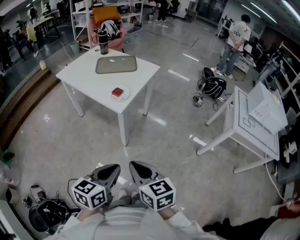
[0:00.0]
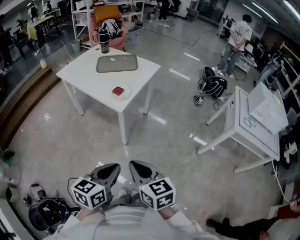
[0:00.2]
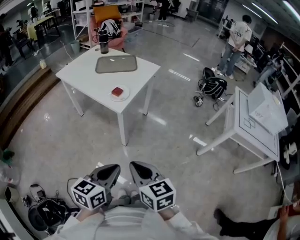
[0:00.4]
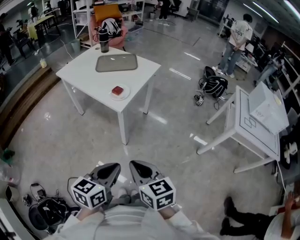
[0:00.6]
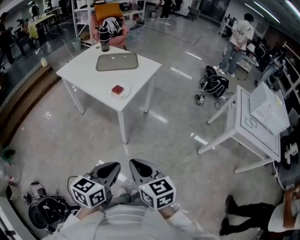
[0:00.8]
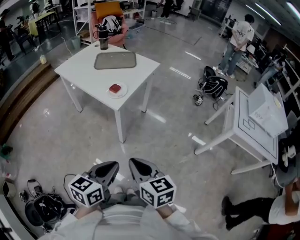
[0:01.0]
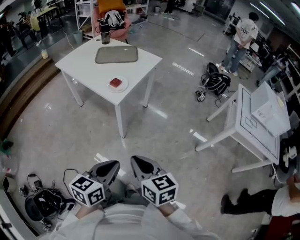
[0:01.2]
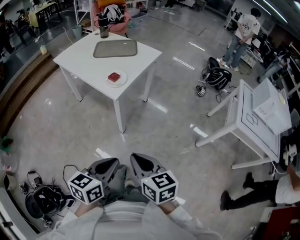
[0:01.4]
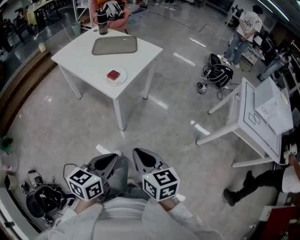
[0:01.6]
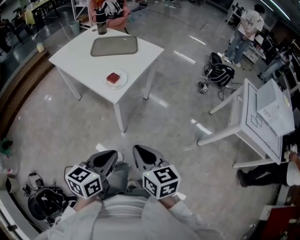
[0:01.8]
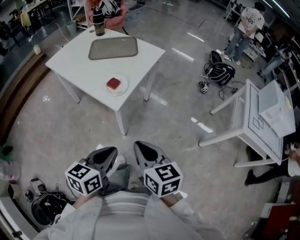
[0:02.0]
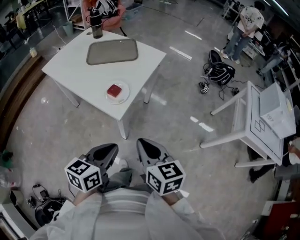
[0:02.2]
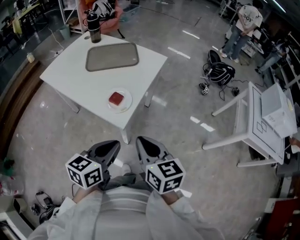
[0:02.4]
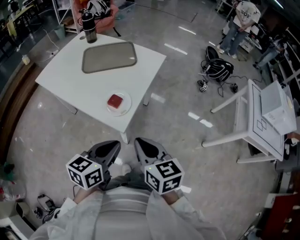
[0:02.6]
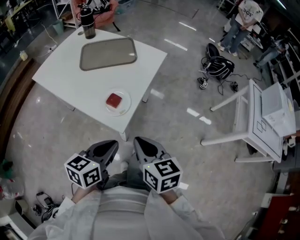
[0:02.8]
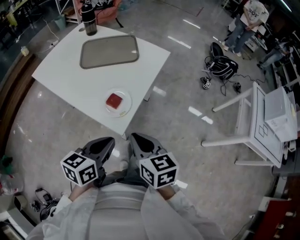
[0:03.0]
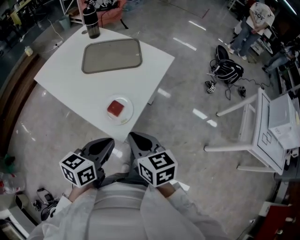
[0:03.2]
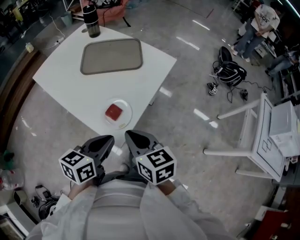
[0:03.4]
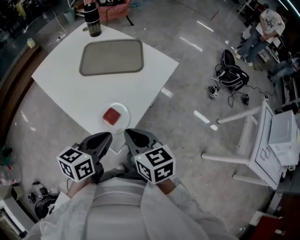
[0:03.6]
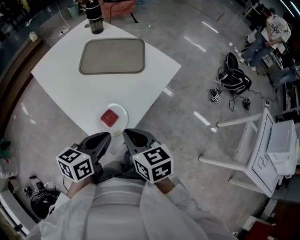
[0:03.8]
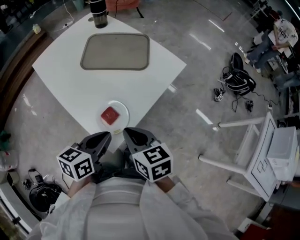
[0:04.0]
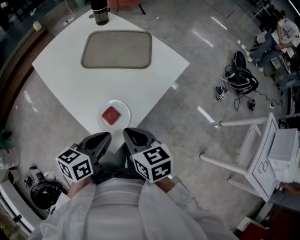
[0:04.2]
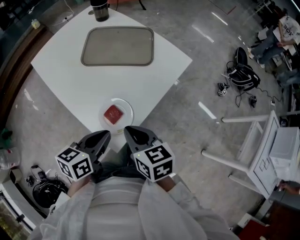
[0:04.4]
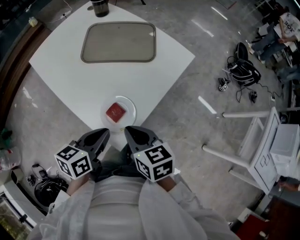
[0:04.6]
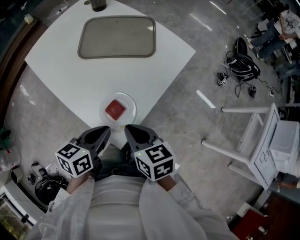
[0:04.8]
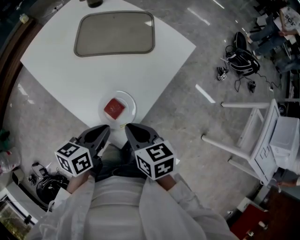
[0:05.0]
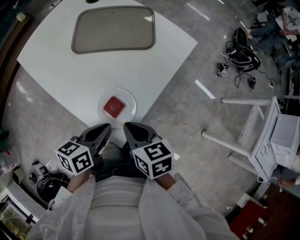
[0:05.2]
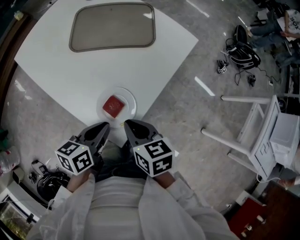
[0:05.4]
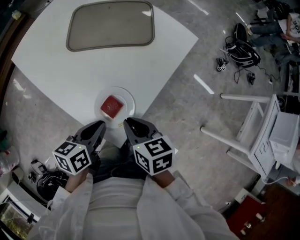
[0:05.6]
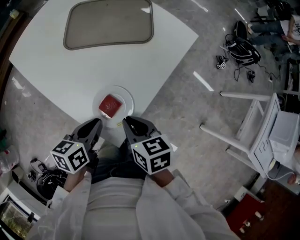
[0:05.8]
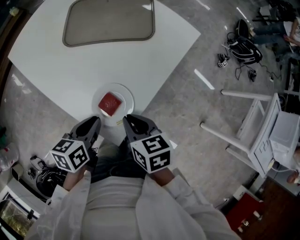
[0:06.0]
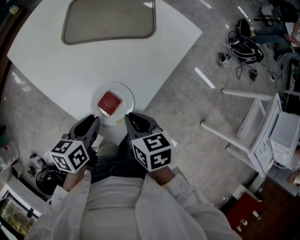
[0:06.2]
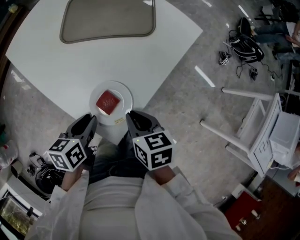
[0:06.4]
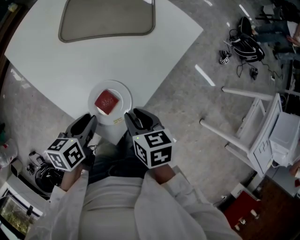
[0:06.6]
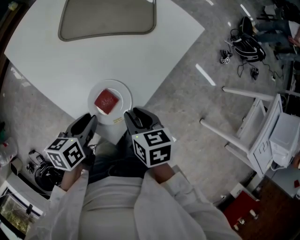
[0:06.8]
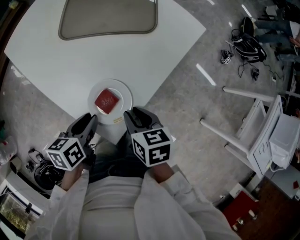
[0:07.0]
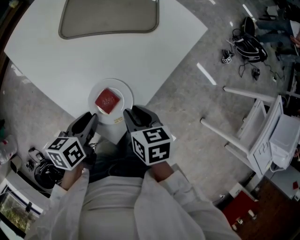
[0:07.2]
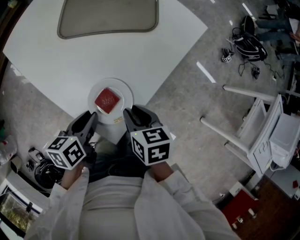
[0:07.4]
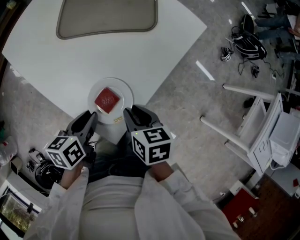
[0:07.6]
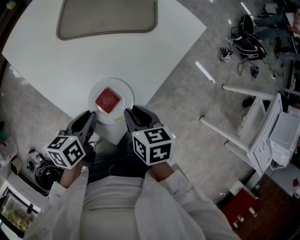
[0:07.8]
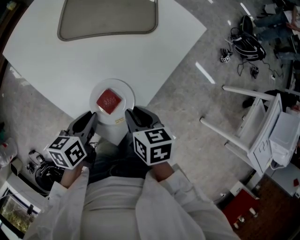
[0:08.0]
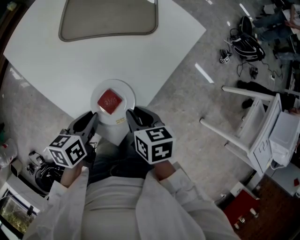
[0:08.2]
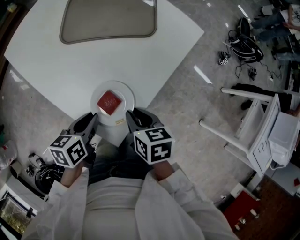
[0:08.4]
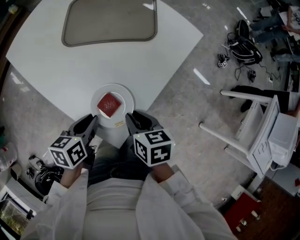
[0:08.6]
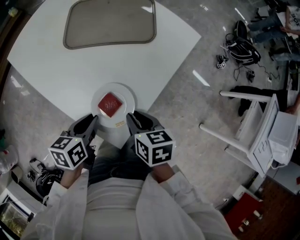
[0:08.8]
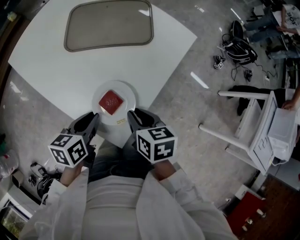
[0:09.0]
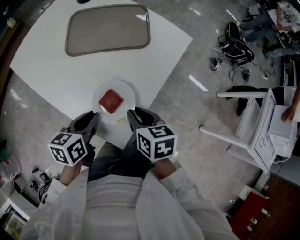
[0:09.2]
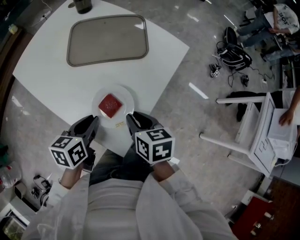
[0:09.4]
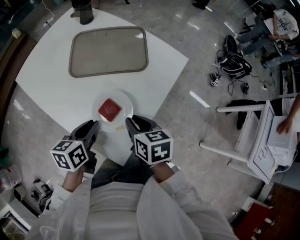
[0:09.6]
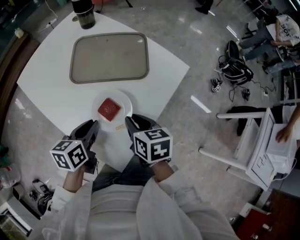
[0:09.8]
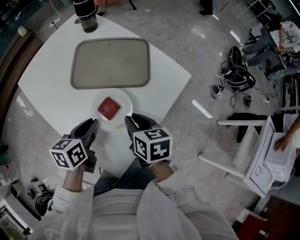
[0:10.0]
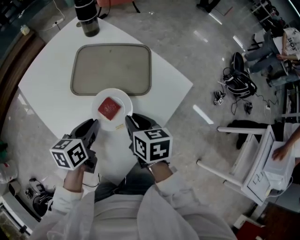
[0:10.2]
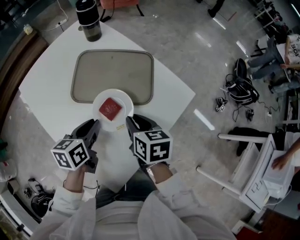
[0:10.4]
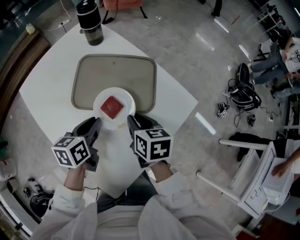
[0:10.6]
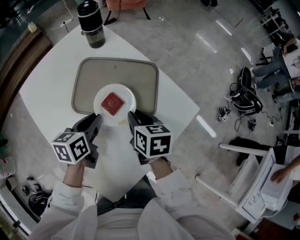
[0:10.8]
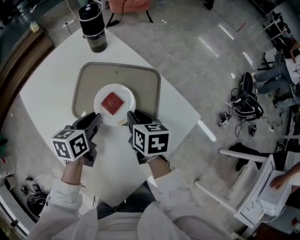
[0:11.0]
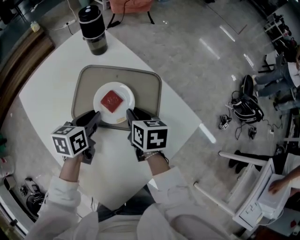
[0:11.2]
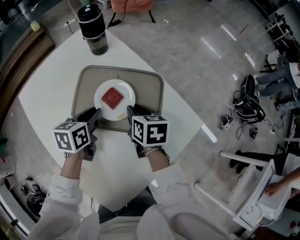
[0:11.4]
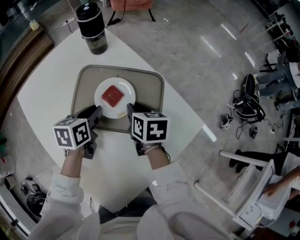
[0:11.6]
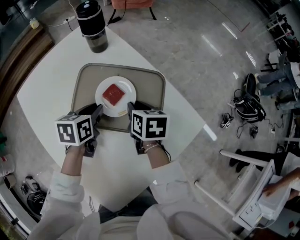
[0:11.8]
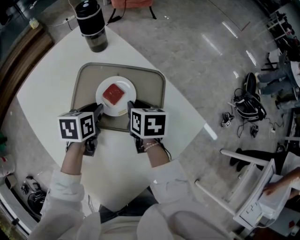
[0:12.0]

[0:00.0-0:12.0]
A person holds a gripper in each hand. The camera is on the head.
0:00.0 to 0:01.6: The right gripper moves to the right and forward, roughly 10 cm. The left gripper moves approximately 5 cm.
0:01.6 to 0:03.0: The two grippers go roughly 30 cm forward and to the left.
0:03.0 to 0:04.4: The two grippers go roughly 15 cm forward.
0:04.4 to 0:06.0: Both grippers travel together downward, some 10 cm.
0:06.0 to 0:09.0: The grippers stay close to where they were, moving slightly.
0:09.0 to 0:10.4: Both grippers move forward, some 20 cm.
0:10.4 to 0:12.0: The two grippers go approximately 15 cm forward.

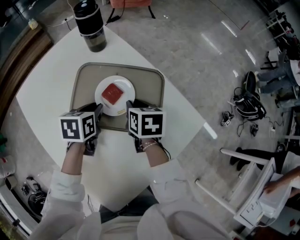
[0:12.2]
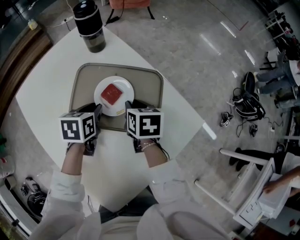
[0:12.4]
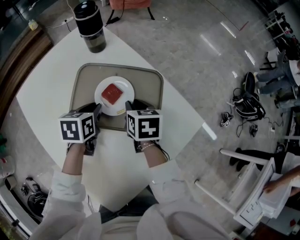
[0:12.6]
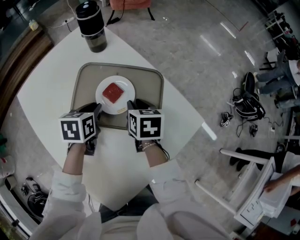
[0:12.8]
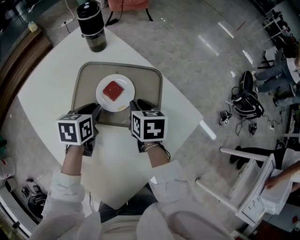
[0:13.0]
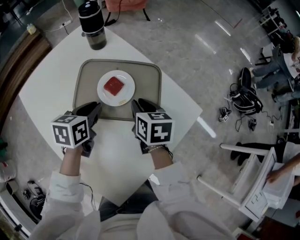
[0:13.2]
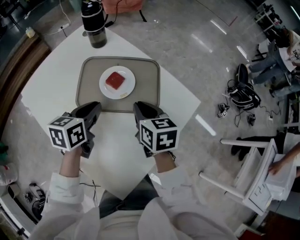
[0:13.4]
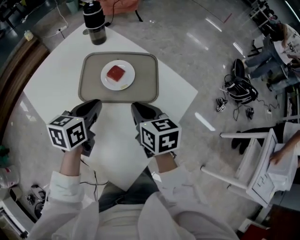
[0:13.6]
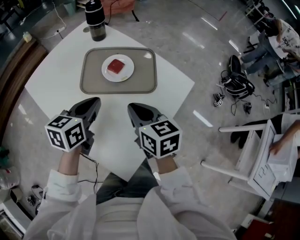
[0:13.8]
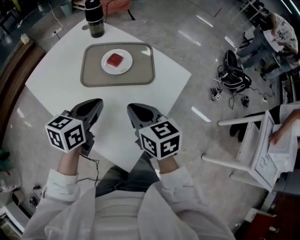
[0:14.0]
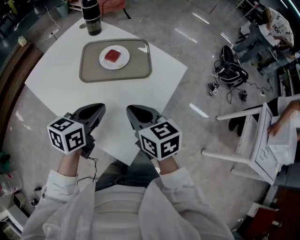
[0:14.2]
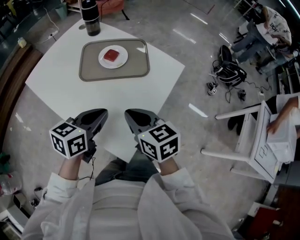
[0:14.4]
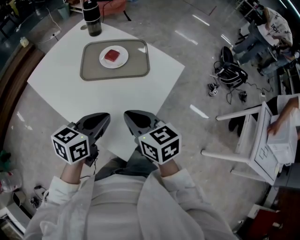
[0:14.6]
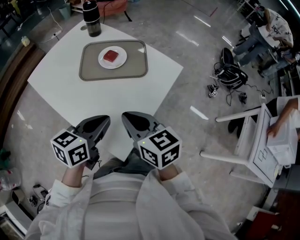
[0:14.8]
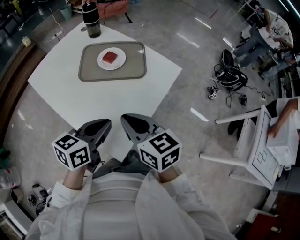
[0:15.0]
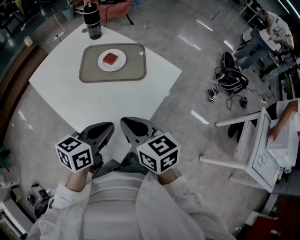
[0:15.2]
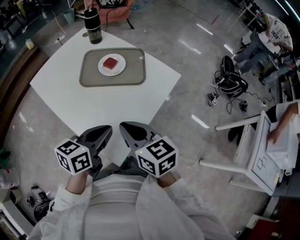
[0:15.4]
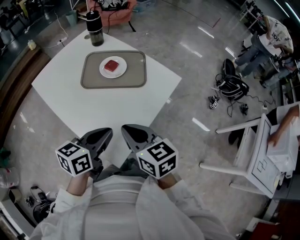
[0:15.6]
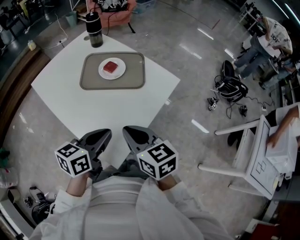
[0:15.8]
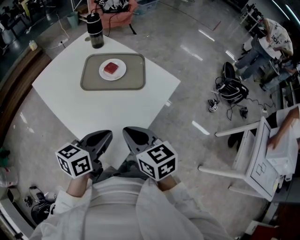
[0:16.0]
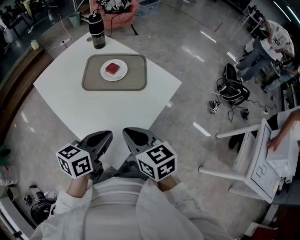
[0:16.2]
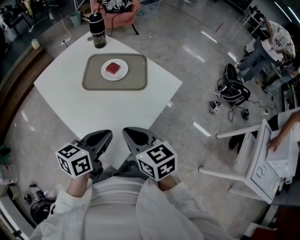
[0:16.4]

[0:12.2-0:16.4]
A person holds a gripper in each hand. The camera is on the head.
0:12.2 to 0:13.6: The grippers both shift backward and upward by about 15 cm. The left gripper turns by approximately 20 degrees.
0:13.6 to 0:15.0: The right gripper is displaced backward and upward by roughly 20 cm. The left gripper moves backward, about 20 cm.
0:15.0 to 0:16.4: The grippers make only small movements.

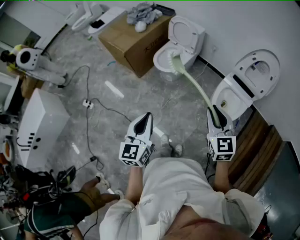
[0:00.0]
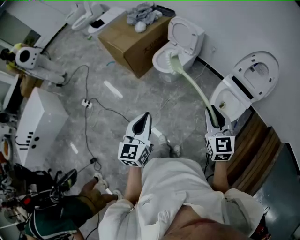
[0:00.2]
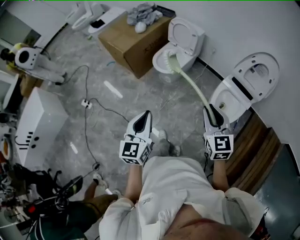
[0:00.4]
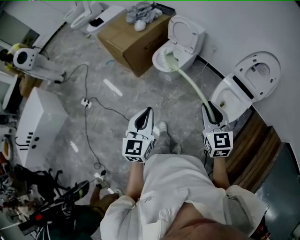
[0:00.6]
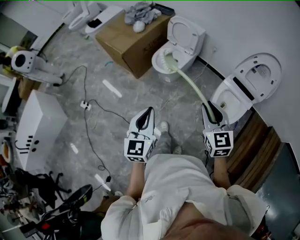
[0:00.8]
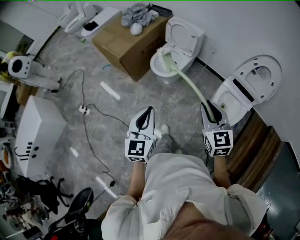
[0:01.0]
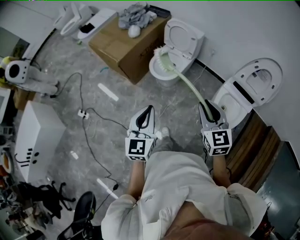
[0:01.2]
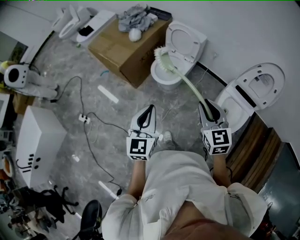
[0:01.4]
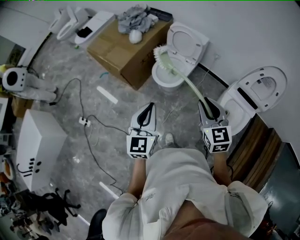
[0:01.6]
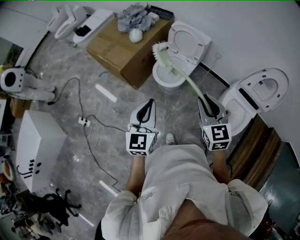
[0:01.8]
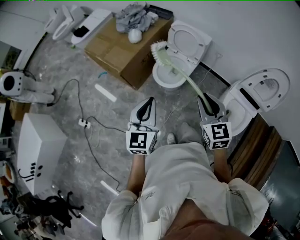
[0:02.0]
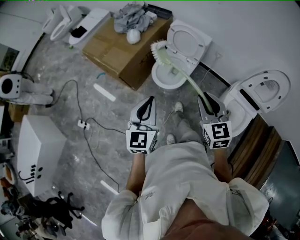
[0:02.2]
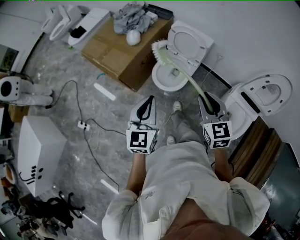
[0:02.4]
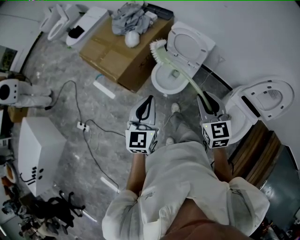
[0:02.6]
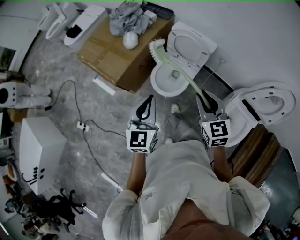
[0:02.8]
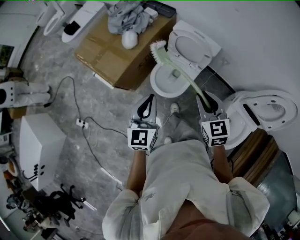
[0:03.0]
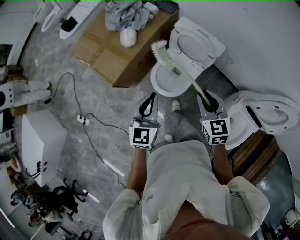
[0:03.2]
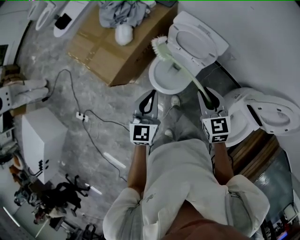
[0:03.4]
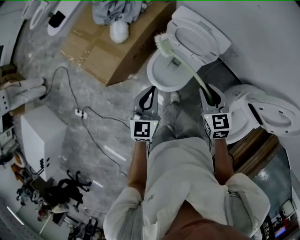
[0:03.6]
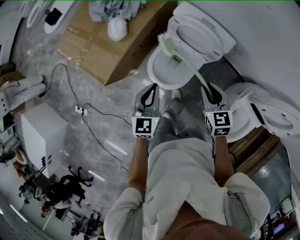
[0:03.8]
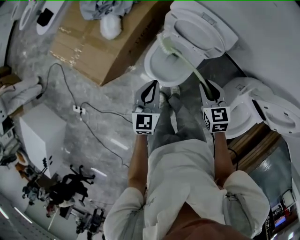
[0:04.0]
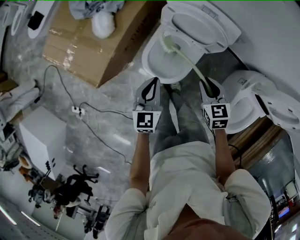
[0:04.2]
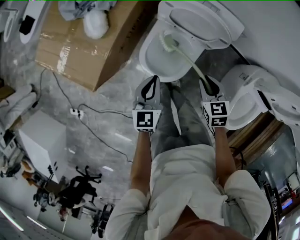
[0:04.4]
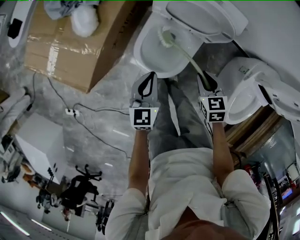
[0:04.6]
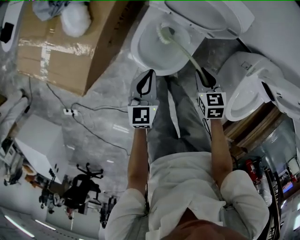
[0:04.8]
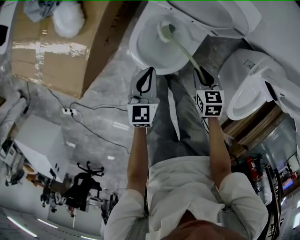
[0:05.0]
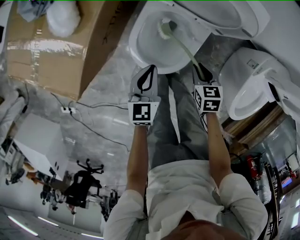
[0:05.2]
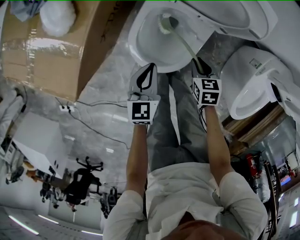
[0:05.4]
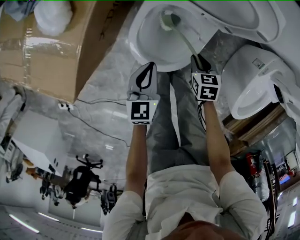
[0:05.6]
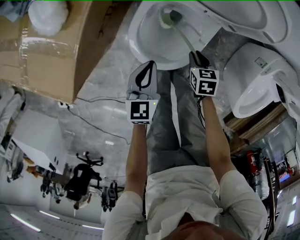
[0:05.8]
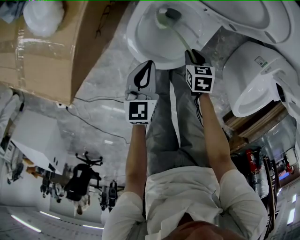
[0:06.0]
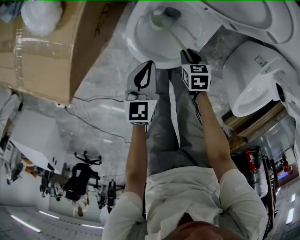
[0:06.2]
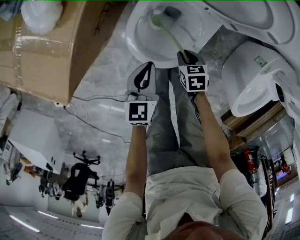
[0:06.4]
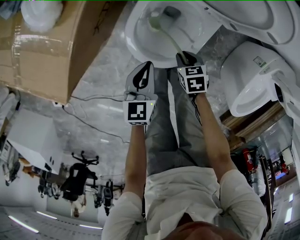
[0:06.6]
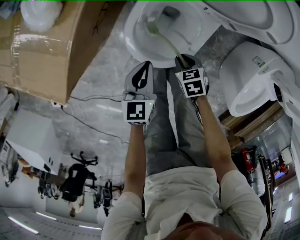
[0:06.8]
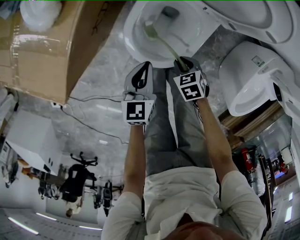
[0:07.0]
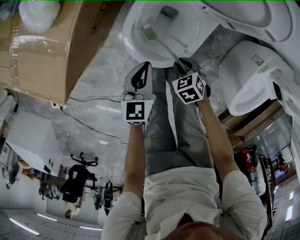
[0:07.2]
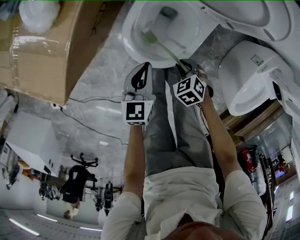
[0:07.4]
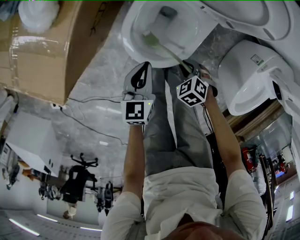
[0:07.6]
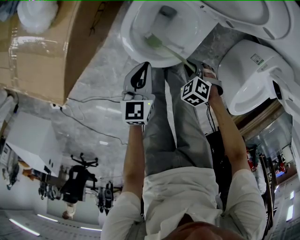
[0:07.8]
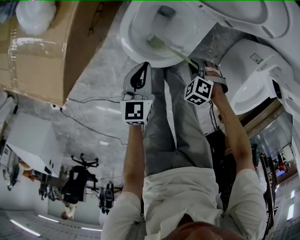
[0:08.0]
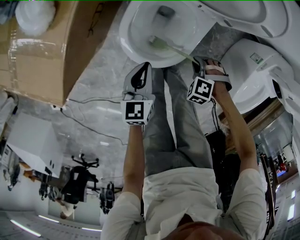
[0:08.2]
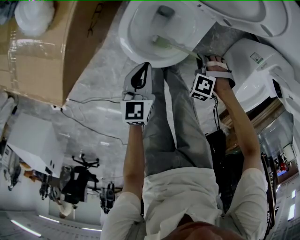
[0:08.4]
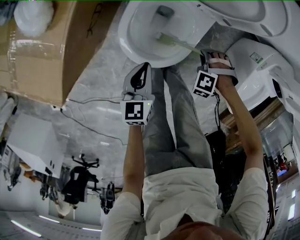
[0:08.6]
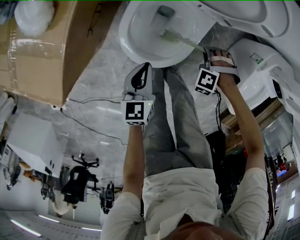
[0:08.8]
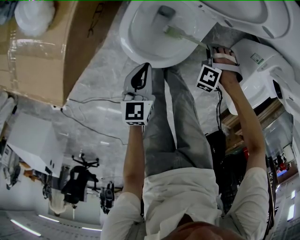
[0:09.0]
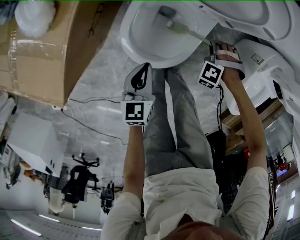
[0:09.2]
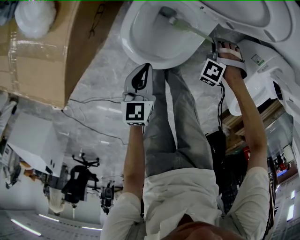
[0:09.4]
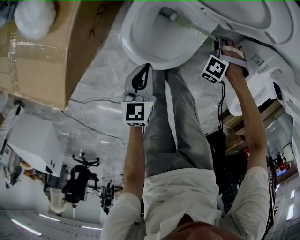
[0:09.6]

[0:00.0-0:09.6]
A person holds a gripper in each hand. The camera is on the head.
0:00.0 to 0:01.6: The right gripper heads forward and to the left, covering some 25 cm, while the left gripper travels forward by about 25 cm.
0:01.6 to 0:03.2: The two grippers go approximately 35 cm forward.
0:03.2 to 0:04.8: The right gripper travels downward by approximately 30 cm, and swivels approximately 30 degrees. Meanwhile the left gripper moves downward and forward, about 30 cm, and swivels approximately 20 degrees.
0:04.8 to 0:06.4: The right gripper moves downward, roughly 20 cm. The left gripper travels downward by approximately 10 cm.
0:06.4 to 0:08.0: The right gripper shifts by about 10 cm, and twists some 60 degrees counterclockwise, seen from behind.
0:08.0 to 0:09.6: The right gripper shifts by approximately 15 cm, and turns by roughly 30 degrees.
